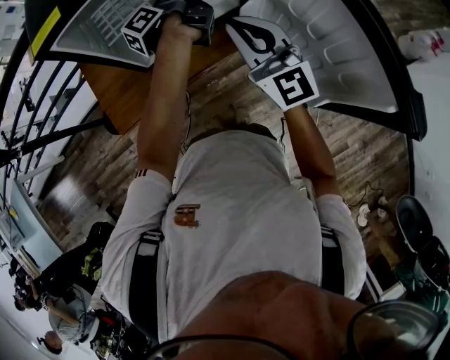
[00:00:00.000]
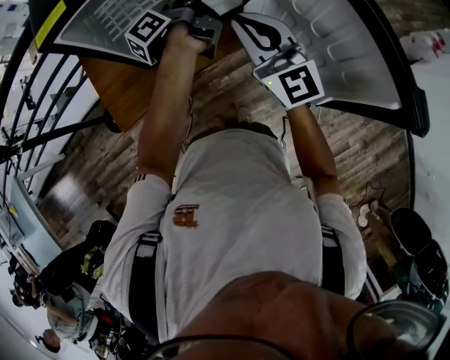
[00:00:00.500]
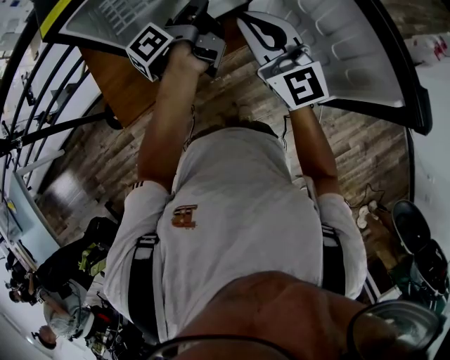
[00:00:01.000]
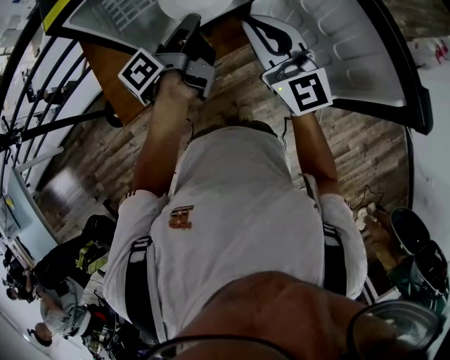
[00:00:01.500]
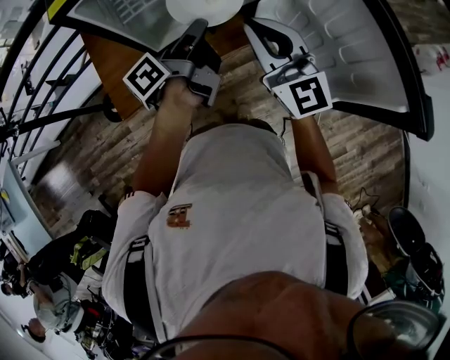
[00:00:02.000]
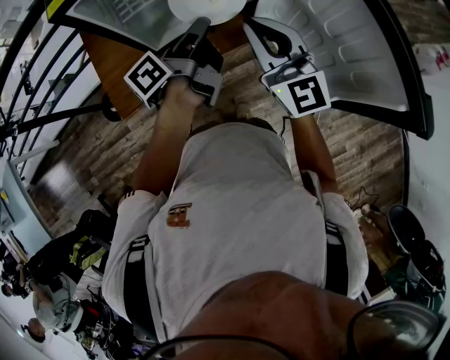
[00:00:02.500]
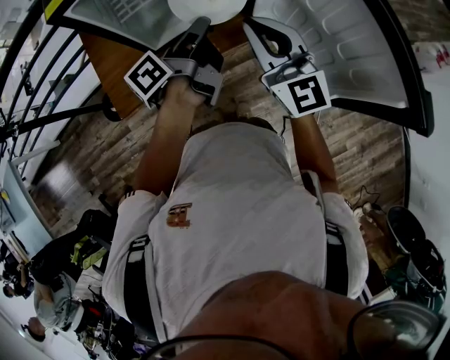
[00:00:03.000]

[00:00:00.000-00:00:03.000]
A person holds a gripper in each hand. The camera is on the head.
00:00:00.000 to 00:00:01.500: The left gripper shifts about 15 cm backward.
00:00:01.500 to 00:00:03.000: The grippers move only a little.

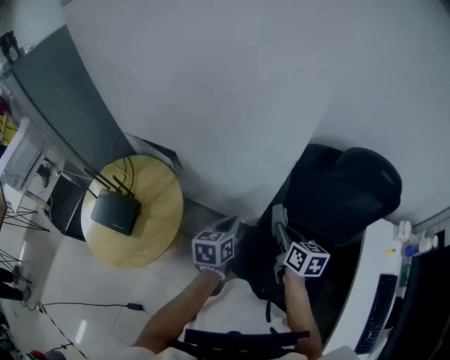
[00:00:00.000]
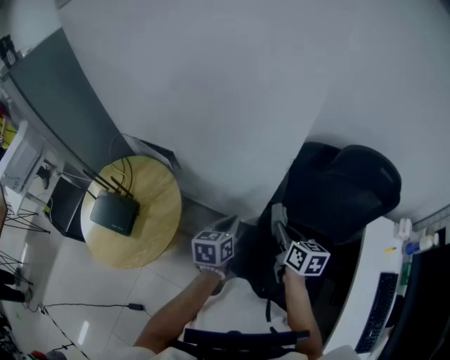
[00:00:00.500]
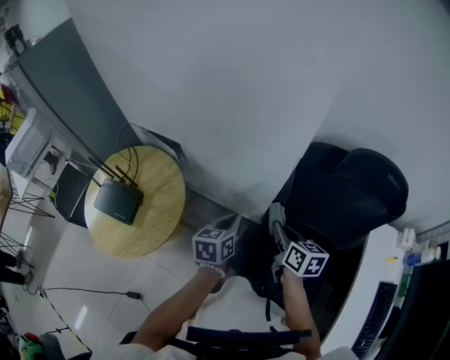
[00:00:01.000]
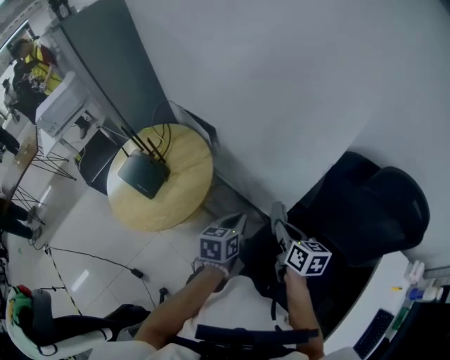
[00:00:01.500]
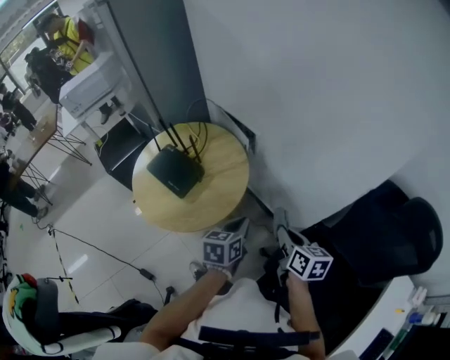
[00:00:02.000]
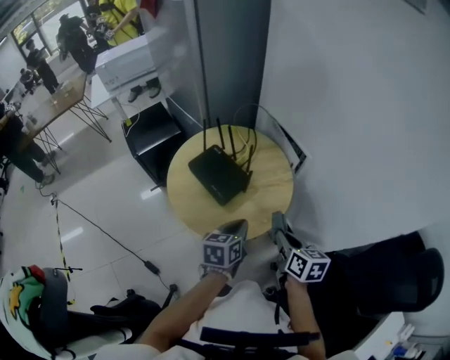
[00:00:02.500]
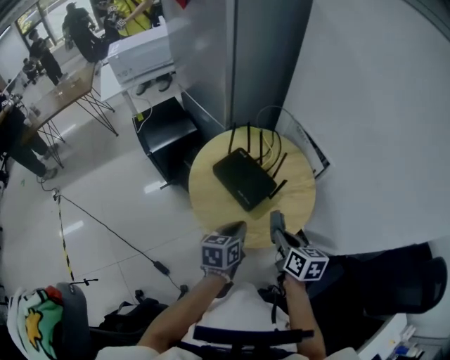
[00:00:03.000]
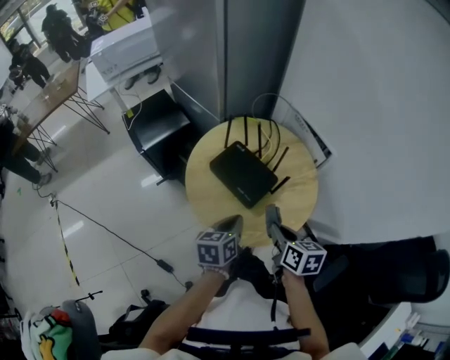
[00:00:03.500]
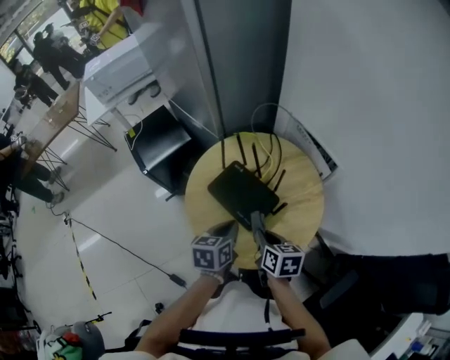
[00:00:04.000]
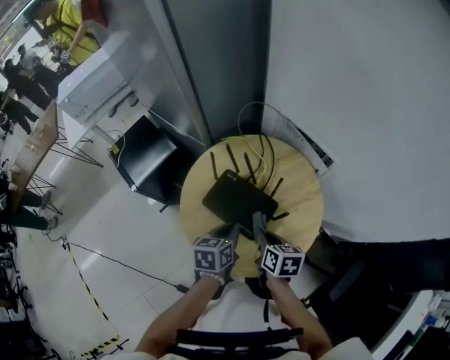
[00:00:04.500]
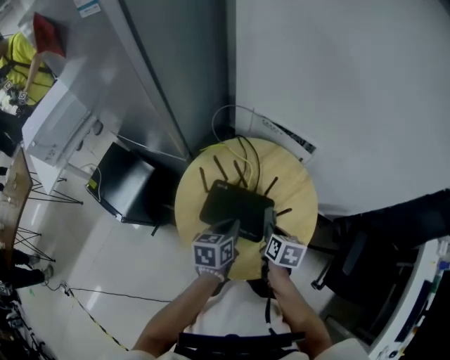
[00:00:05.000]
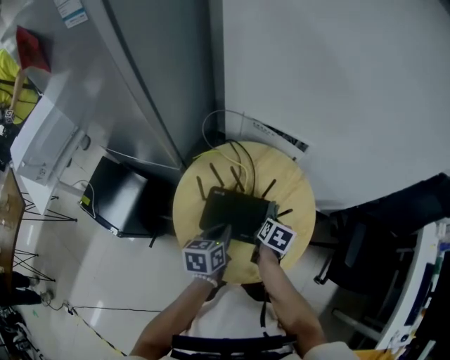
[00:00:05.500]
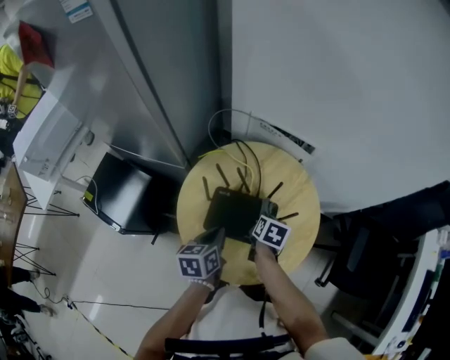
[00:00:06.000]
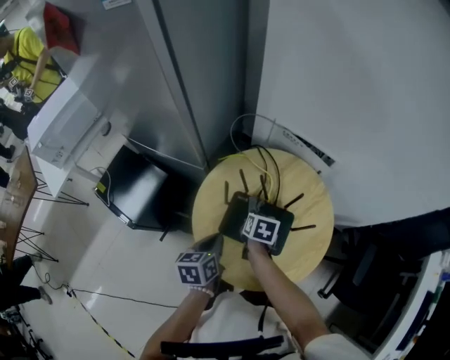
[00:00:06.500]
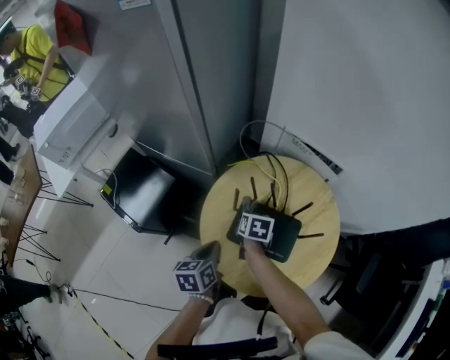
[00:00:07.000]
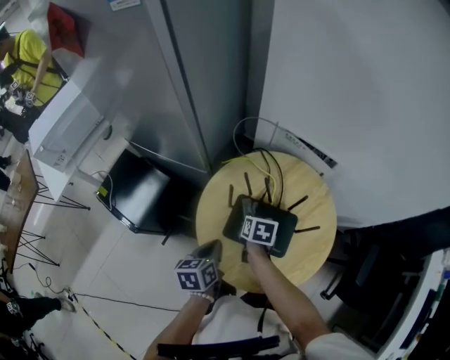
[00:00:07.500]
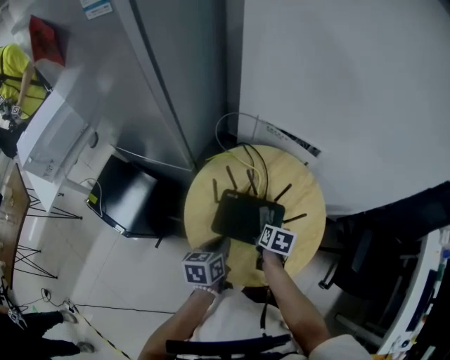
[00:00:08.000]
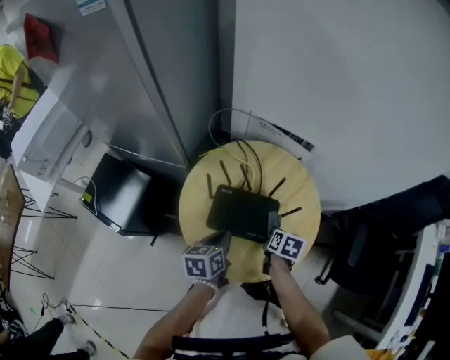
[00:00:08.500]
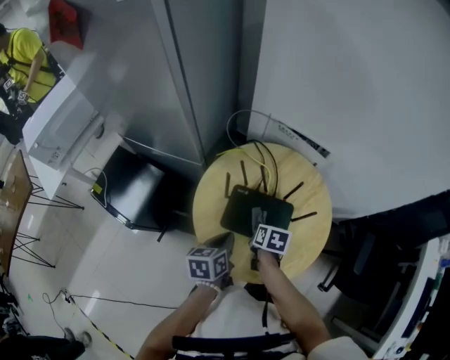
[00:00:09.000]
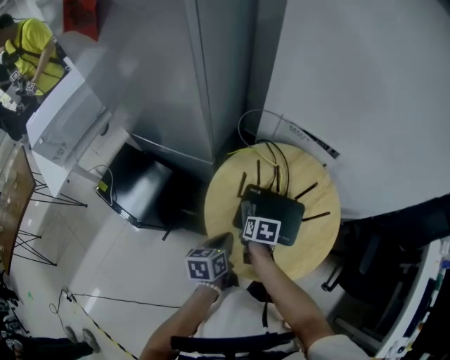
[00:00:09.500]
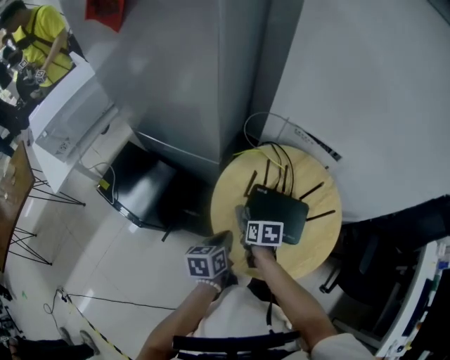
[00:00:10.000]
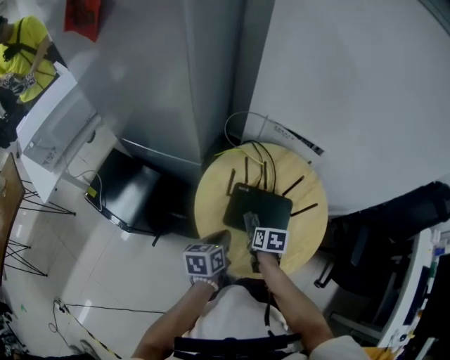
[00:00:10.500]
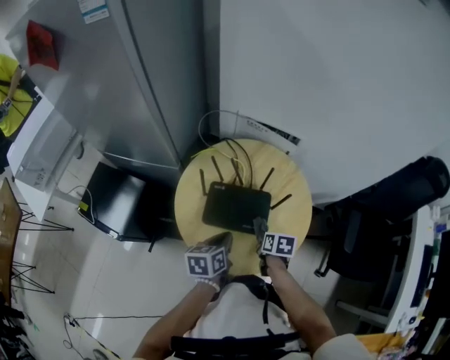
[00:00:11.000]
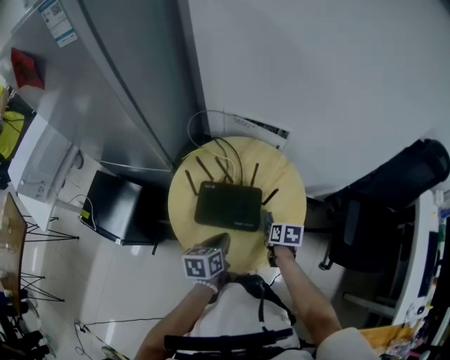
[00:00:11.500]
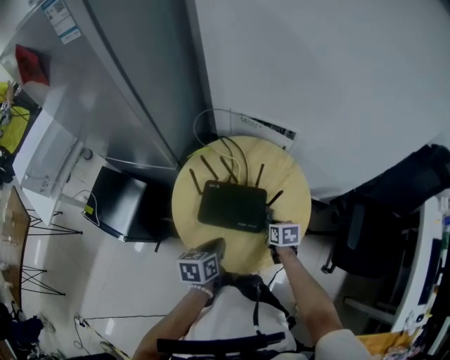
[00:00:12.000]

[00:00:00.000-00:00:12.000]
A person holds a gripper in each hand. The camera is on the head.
00:00:00.000 to 00:00:02.000: The right gripper changes place by some 20 cm, and rotates about 30 degrees. Meanwhile the left gripper shifts by about 20 cm, and turns by about 20 degrees.
00:00:02.000 to 00:00:04.000: The grippers both shift to the left and forward by roughly 40 cm.
00:00:04.000 to 00:00:06.000: The left gripper shifts by some 15 cm, and rotates about 20 degrees; the right gripper changes place by some 15 cm, and swivels some 50 degrees.
00:00:06.000 to 00:00:08.000: The left gripper reaches approximately 10 cm to the left, then returns; the right gripper travels to the left and back again, about 15 cm each way.
00:00:08.000 to 00:00:10.000: The left gripper goes about 10 cm to the left; the right gripper shifts about 20 cm to the left, and turns by about 20 degrees.
00:00:10.000 to 00:00:12.000: The right gripper goes some 25 cm to the right. Meanwhile the left gripper moves to the right, approximately 15 cm.

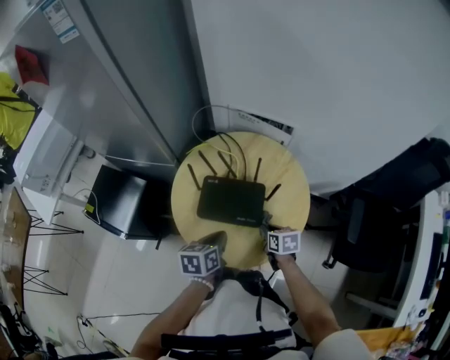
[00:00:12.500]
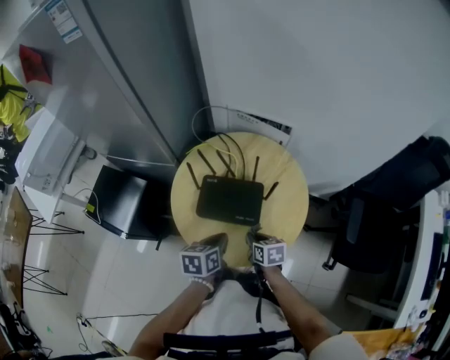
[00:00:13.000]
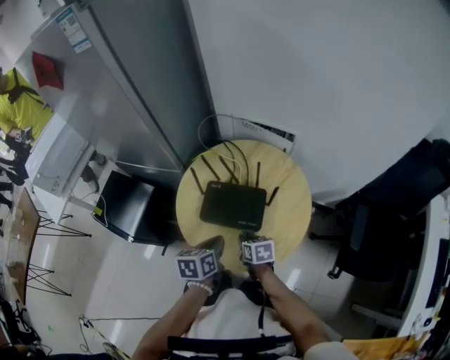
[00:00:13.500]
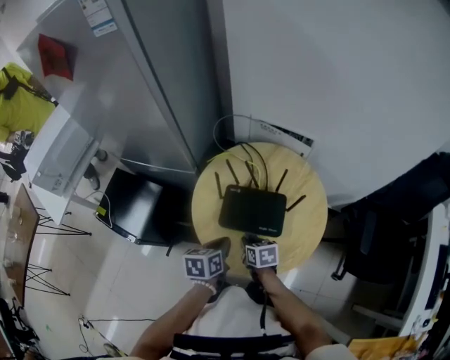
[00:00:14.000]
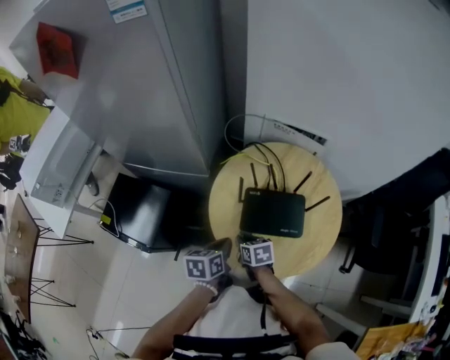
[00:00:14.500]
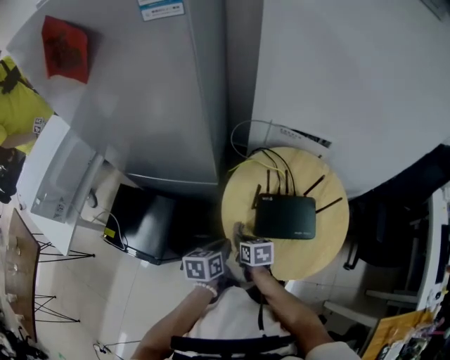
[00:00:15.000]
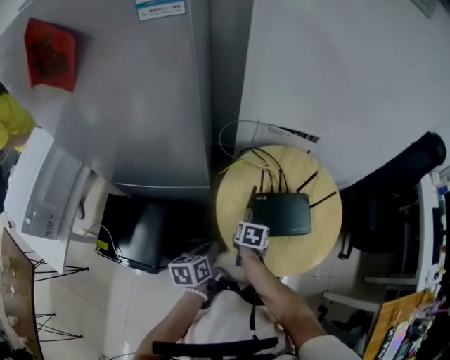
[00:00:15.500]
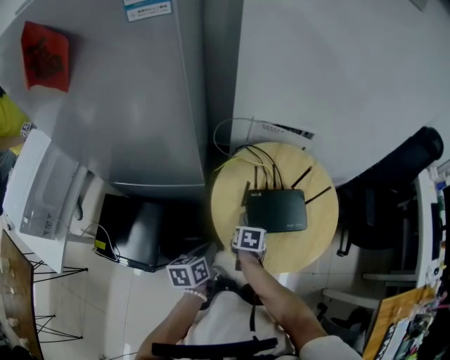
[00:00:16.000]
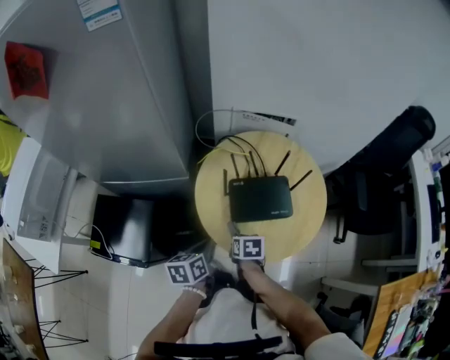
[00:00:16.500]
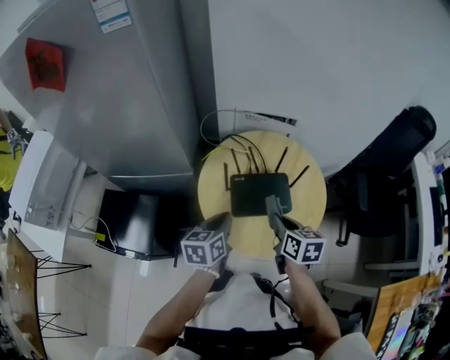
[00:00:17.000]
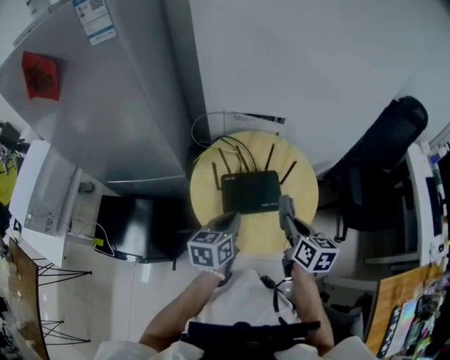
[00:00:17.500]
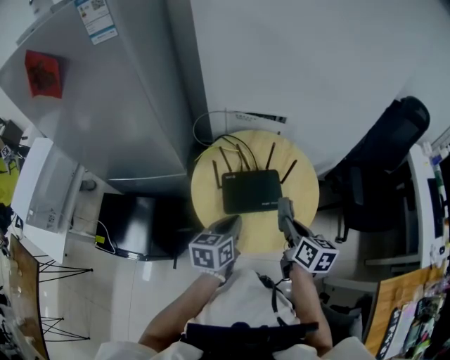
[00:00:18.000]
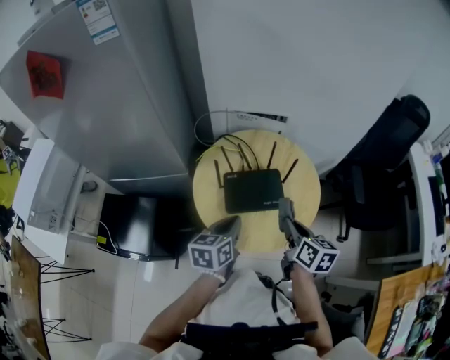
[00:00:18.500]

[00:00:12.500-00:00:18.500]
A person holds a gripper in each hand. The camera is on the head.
00:00:12.500 to 00:00:14.500: The left gripper is displaced to the left by approximately 15 cm. Meanwhile the right gripper goes some 25 cm to the left.
00:00:14.500 to 00:00:16.500: The right gripper changes its angle by approximately 30 degrees.
00:00:16.500 to 00:00:18.500: The left gripper is displaced to the right and upward by approximately 15 cm, while the right gripper goes roughly 25 cm upward and to the right, and points its fingers approximately 30 degrees further upward.

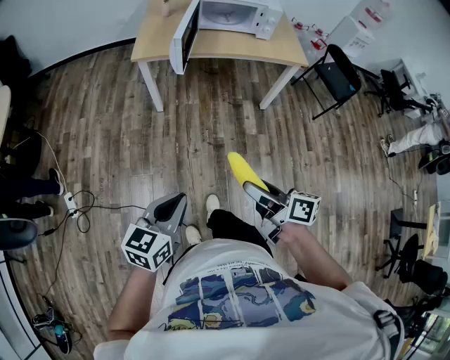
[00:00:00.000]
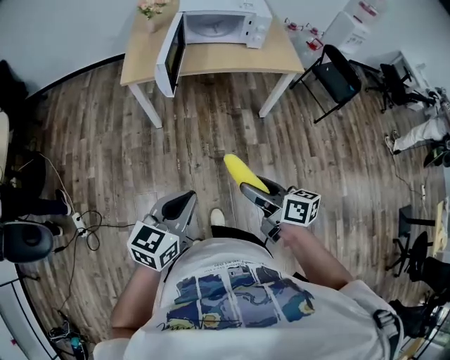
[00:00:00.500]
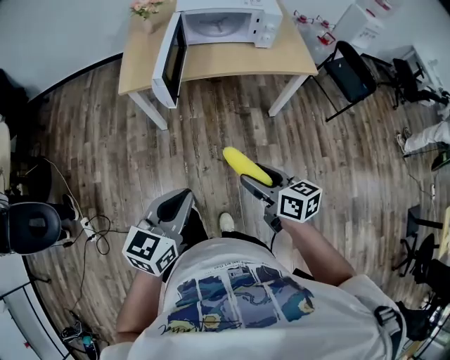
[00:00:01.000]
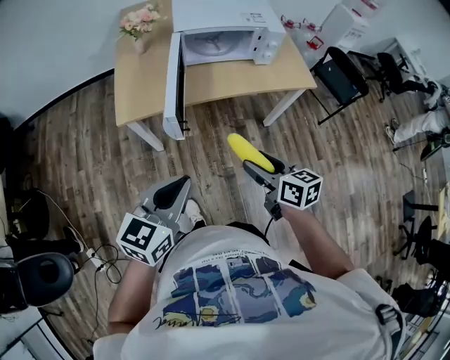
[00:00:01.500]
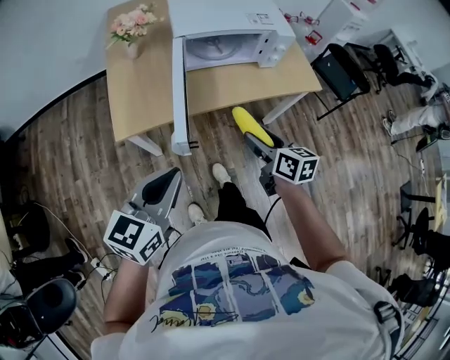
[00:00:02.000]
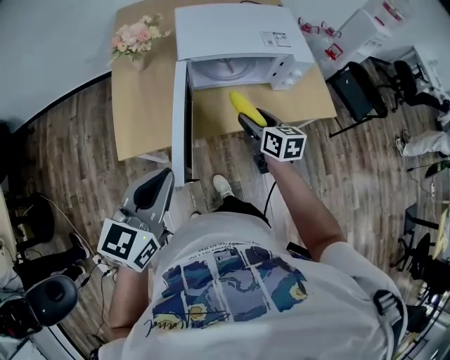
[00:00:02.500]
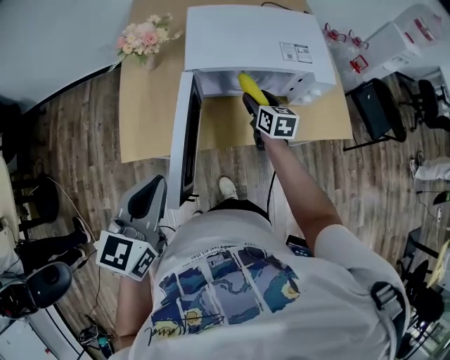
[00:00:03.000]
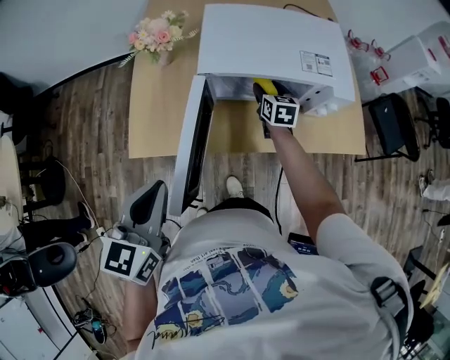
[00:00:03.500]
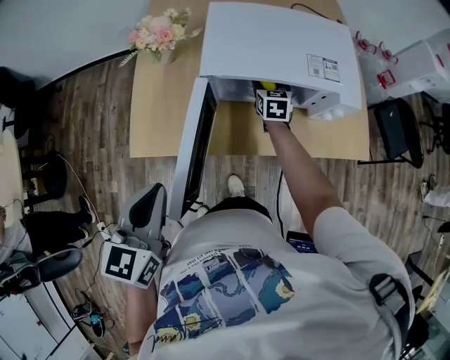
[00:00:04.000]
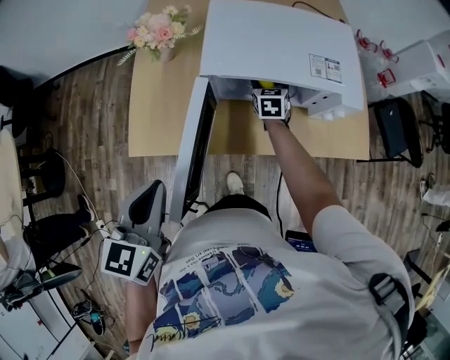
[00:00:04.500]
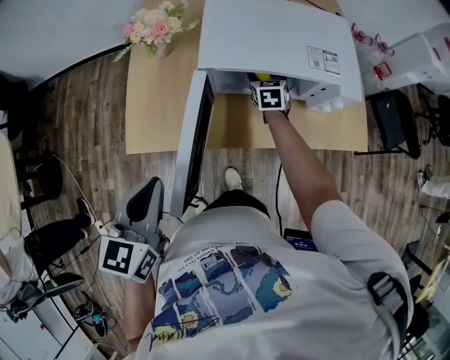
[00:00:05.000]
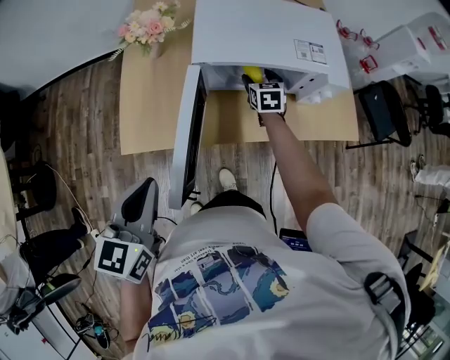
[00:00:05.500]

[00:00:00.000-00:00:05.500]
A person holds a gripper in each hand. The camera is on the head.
00:00:00.000 to 00:00:02.000: The two grippers travel together, forward, approximately 50 cm. The right gripper turns by some 30 degrees.
00:00:02.000 to 00:00:03.500: The right gripper goes roughly 40 cm forward; the left gripper travels forward by some 15 cm, and swivels some 30 degrees.
00:00:03.500 to 00:00:05.500: The grippers move only a little.
